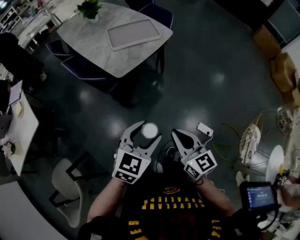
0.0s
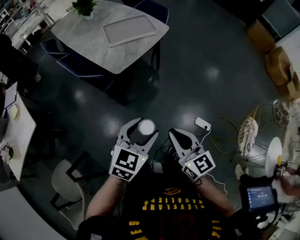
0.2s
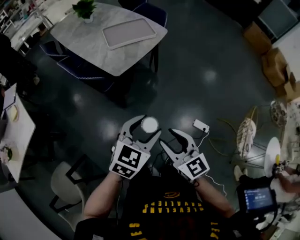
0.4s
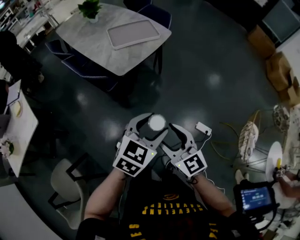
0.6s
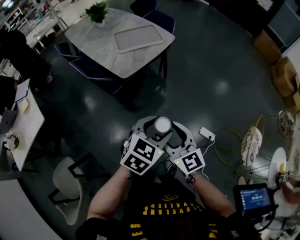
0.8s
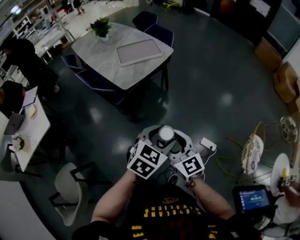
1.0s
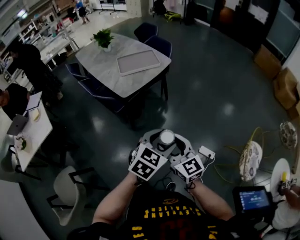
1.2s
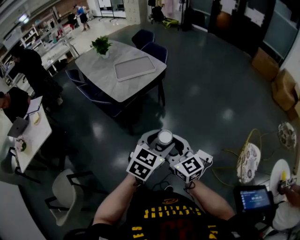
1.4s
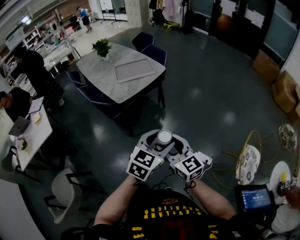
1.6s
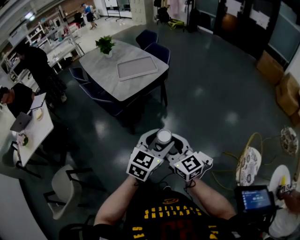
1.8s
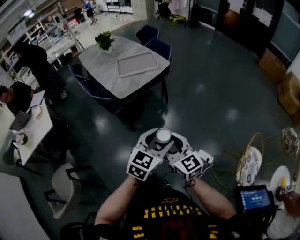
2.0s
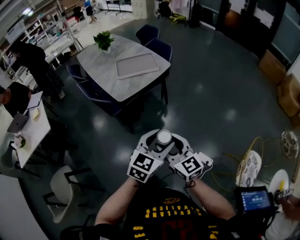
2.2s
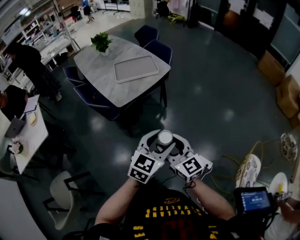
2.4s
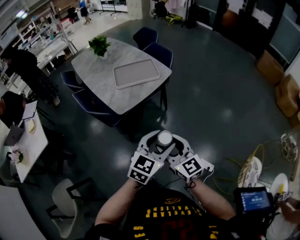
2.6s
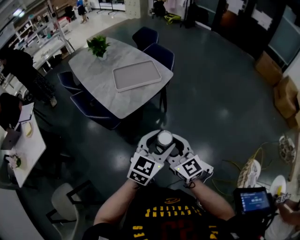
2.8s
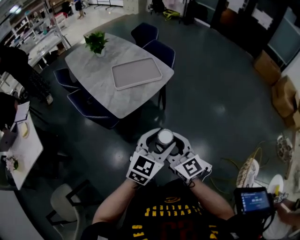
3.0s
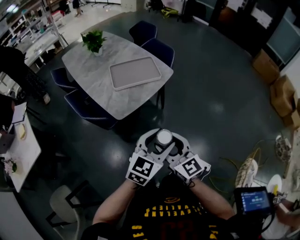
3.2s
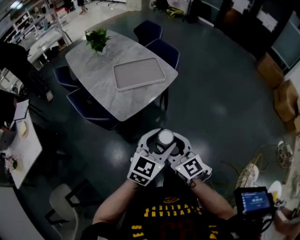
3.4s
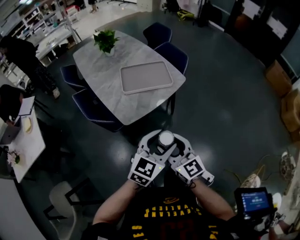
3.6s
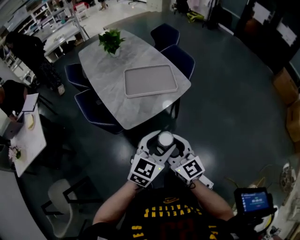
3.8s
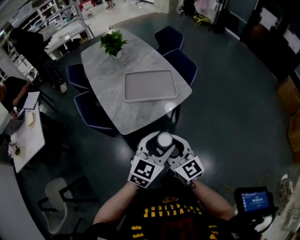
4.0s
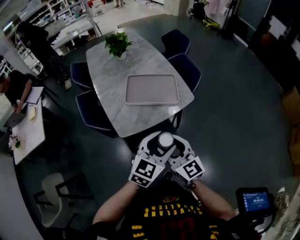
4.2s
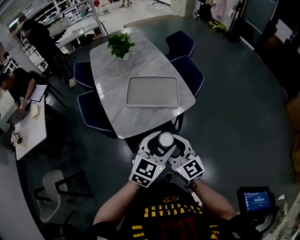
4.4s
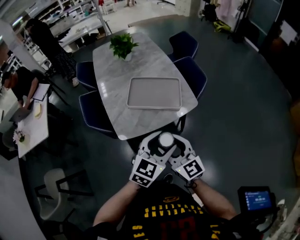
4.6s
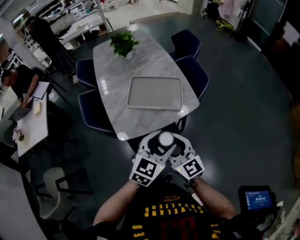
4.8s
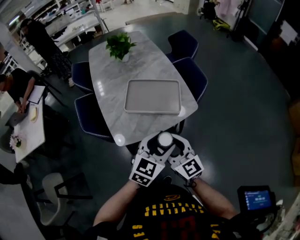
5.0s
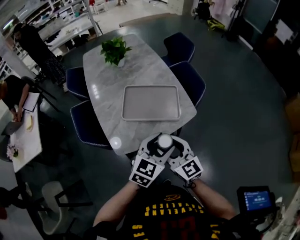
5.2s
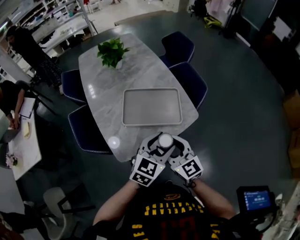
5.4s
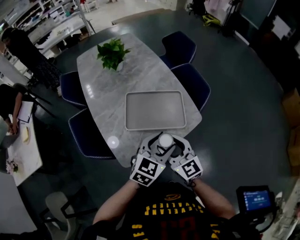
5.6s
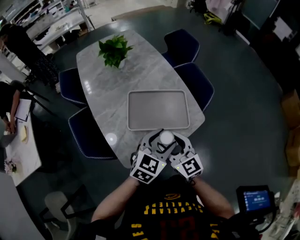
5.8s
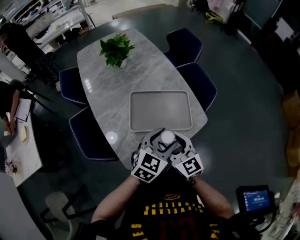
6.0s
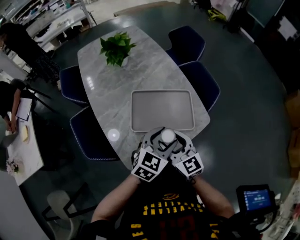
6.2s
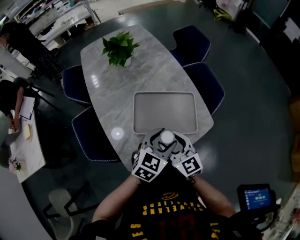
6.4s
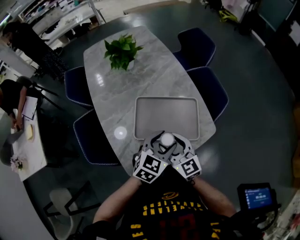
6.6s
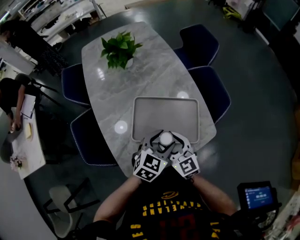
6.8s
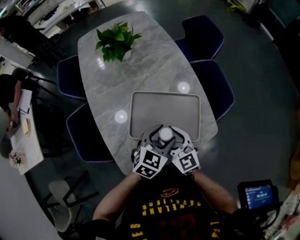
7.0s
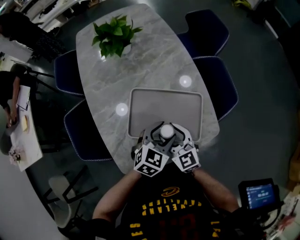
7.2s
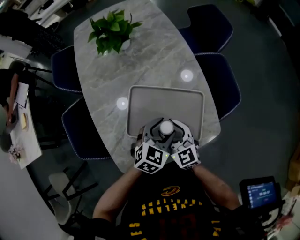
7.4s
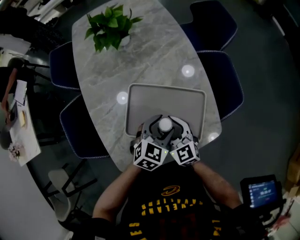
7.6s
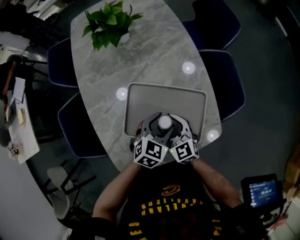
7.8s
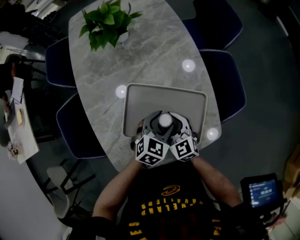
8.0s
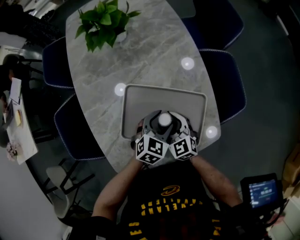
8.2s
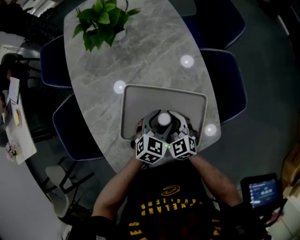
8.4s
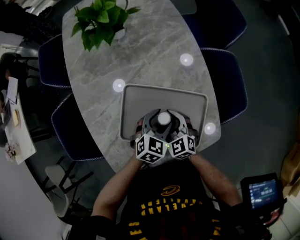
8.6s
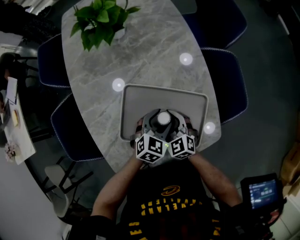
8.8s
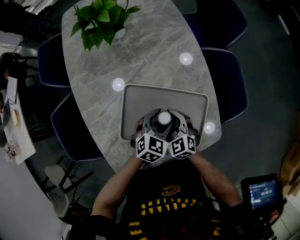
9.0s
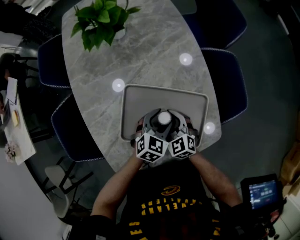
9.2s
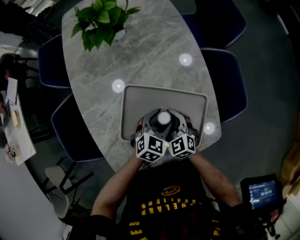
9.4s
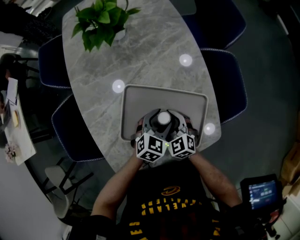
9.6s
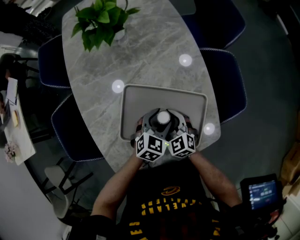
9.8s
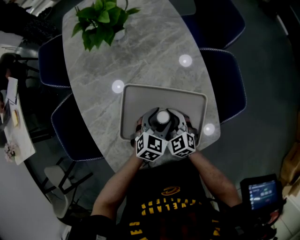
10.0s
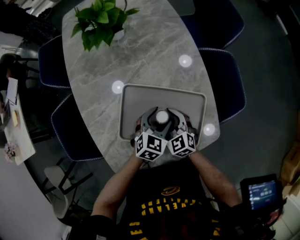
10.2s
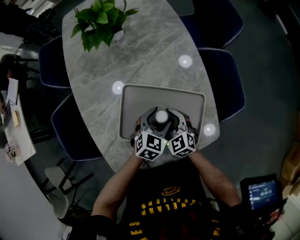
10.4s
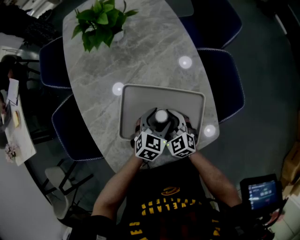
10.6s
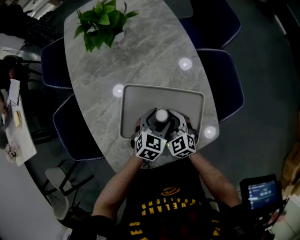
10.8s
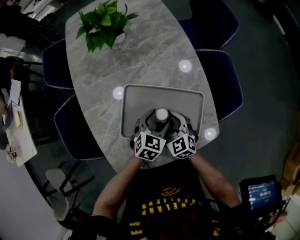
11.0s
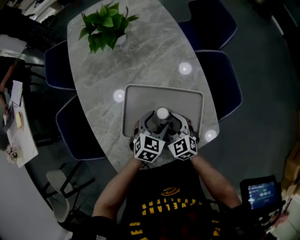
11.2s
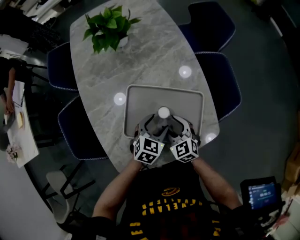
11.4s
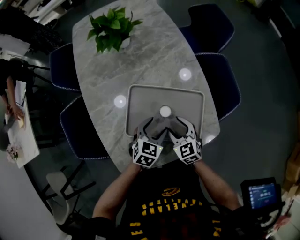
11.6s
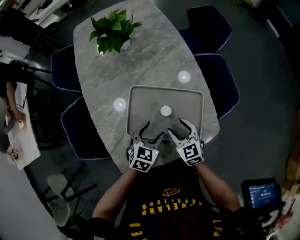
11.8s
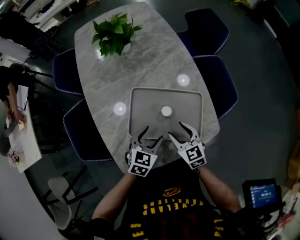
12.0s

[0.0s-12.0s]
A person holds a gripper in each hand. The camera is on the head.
0.0s to 1.6s: The left gripper travels to the right and upward by approximately 20 cm; the right gripper heads to the right and upward, covering approximately 10 cm, and opens.
1.6s to 3.0s: Both grippers travel together forward, about 20 cm.
3.0s to 4.4s: The grippers both shift forward by some 25 cm. The right gripper turns by roughly 20 degrees; the left gripper changes its angle by about 20 degrees.
4.4s to 6.0s: Both grippers move forward, approximately 20 cm.
6.0s to 7.6s: The two grippers go roughly 20 cm forward and downward.
7.6s to 9.0s: The grippers both shift downward by approximately 5 cm.
9.0s to 10.4s: Both grippers stay put.
10.4s to 12.0s: The left gripper travels backward, to the left and upward by roughly 15 cm; the right gripper moves backward and upward, roughly 10 cm.

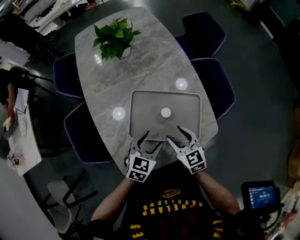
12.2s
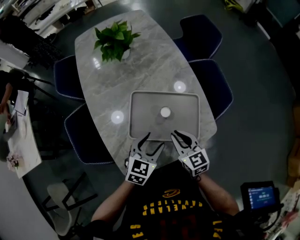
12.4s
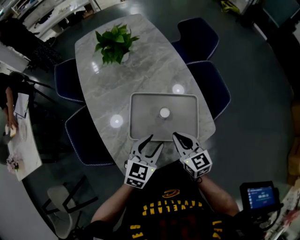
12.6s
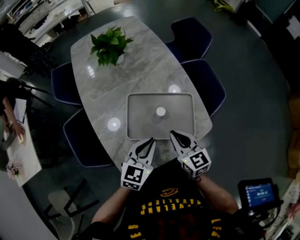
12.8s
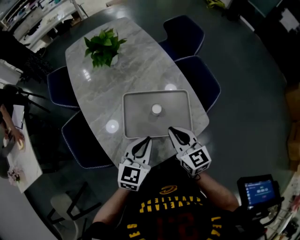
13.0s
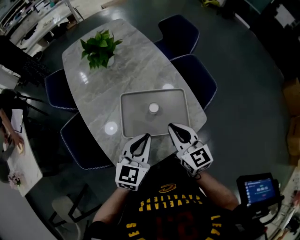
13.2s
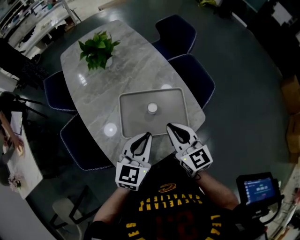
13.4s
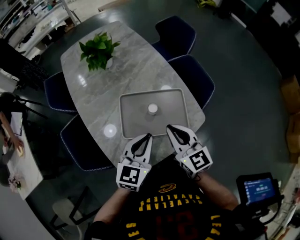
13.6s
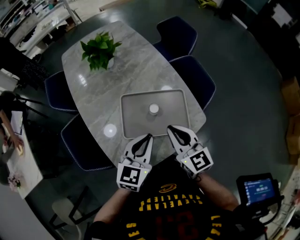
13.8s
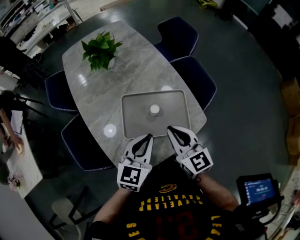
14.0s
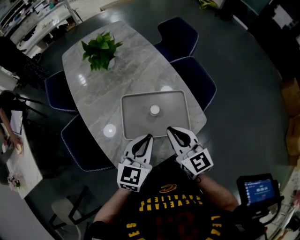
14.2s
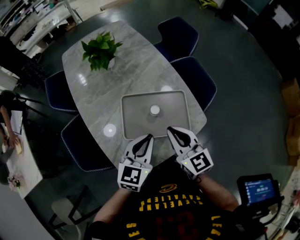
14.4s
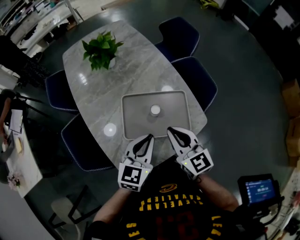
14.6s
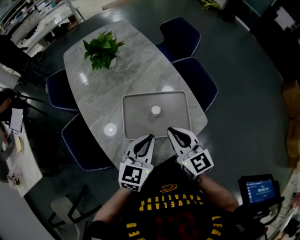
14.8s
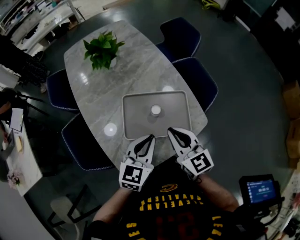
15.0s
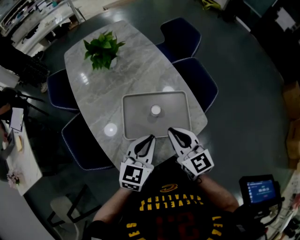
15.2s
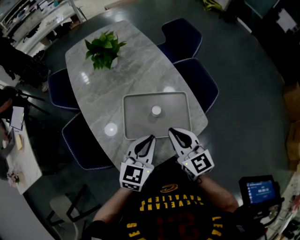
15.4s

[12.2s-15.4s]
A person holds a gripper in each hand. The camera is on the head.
12.2s to 13.8s: The grippers both shift upward by roughly 15 cm. The right gripper turns by about 20 degrees, and closes up. The left gripper closes its fingers.
13.8s to 15.4s: Both grippers stay put.

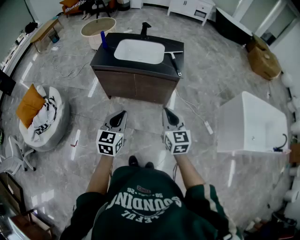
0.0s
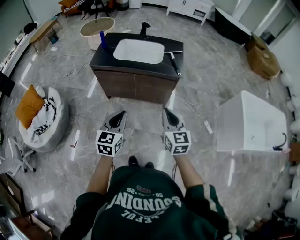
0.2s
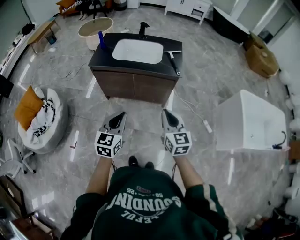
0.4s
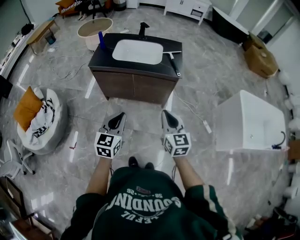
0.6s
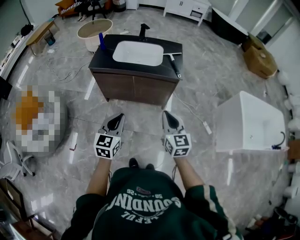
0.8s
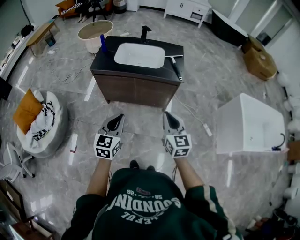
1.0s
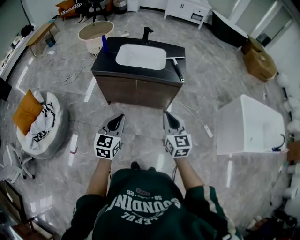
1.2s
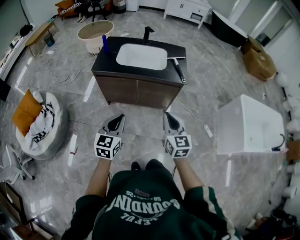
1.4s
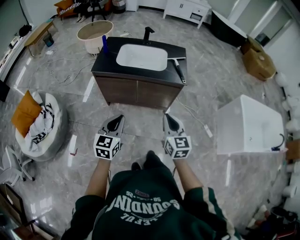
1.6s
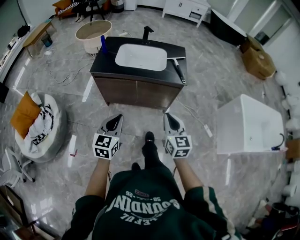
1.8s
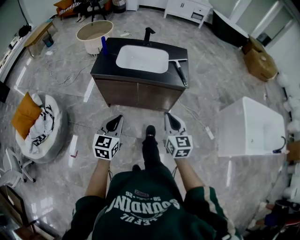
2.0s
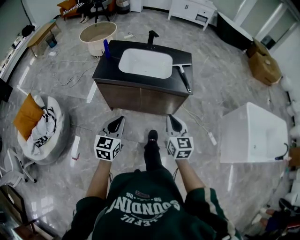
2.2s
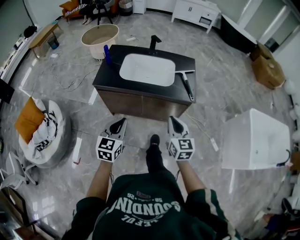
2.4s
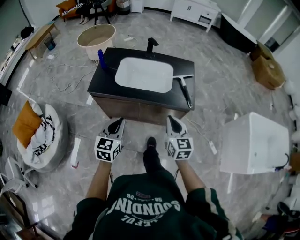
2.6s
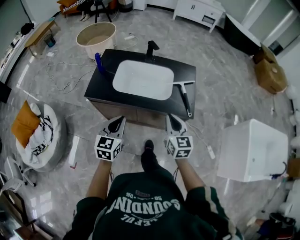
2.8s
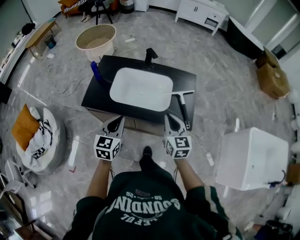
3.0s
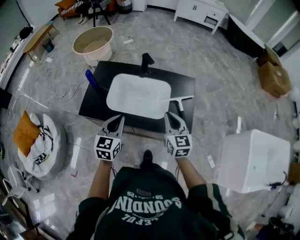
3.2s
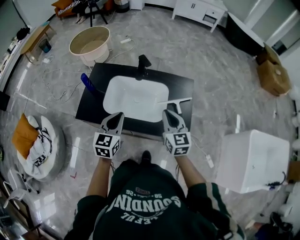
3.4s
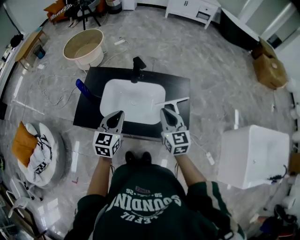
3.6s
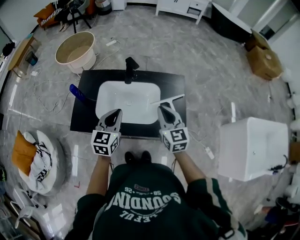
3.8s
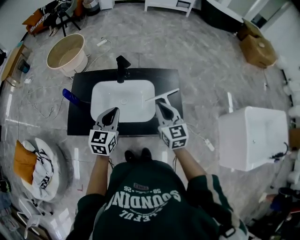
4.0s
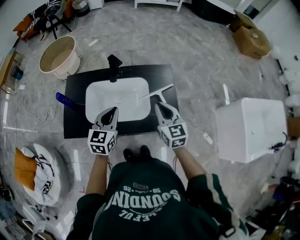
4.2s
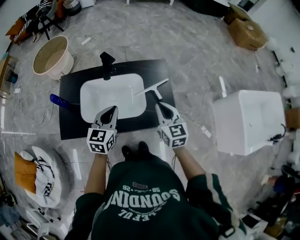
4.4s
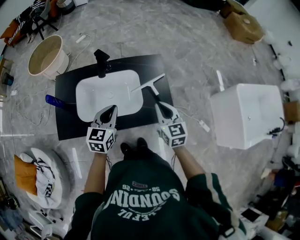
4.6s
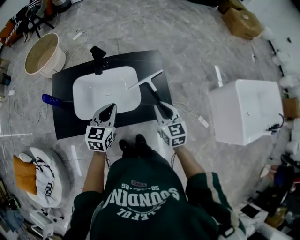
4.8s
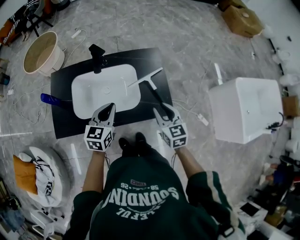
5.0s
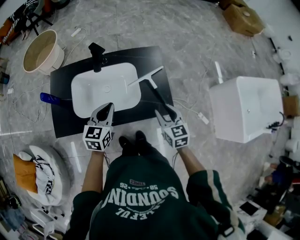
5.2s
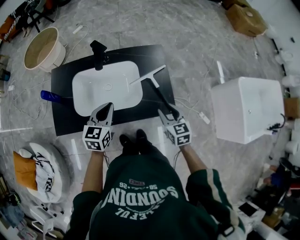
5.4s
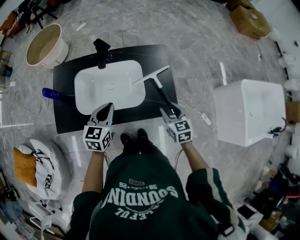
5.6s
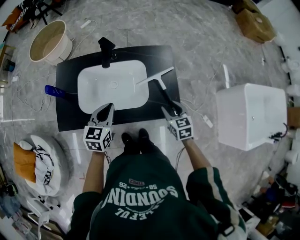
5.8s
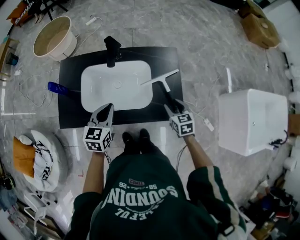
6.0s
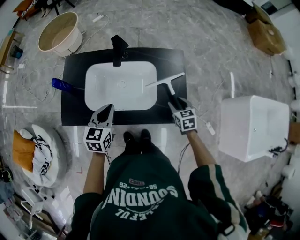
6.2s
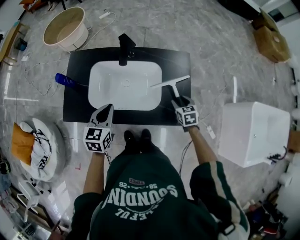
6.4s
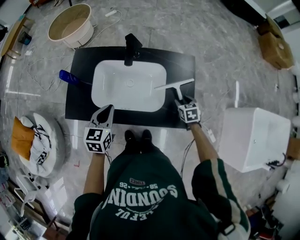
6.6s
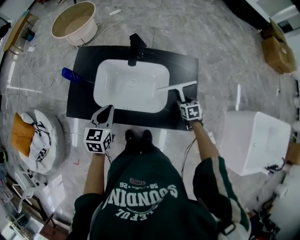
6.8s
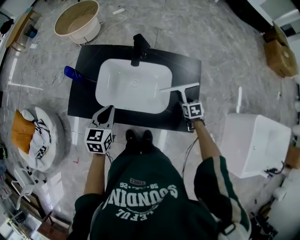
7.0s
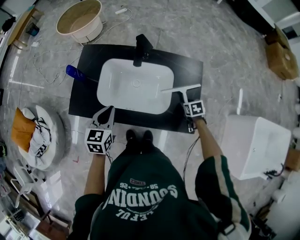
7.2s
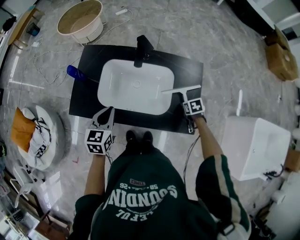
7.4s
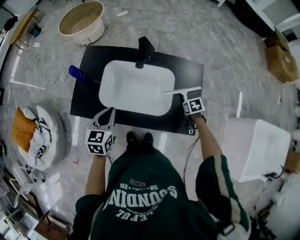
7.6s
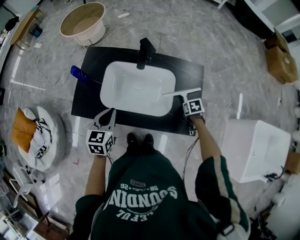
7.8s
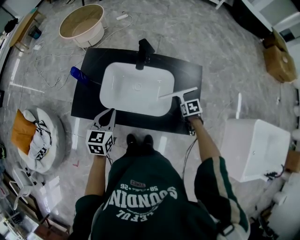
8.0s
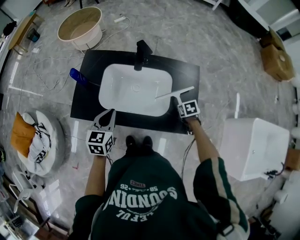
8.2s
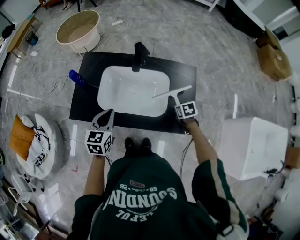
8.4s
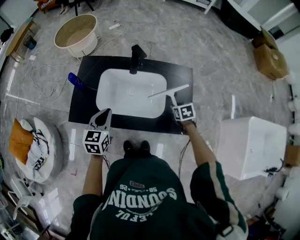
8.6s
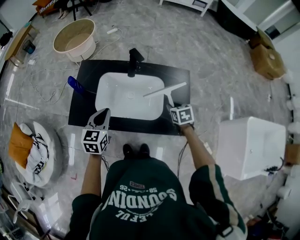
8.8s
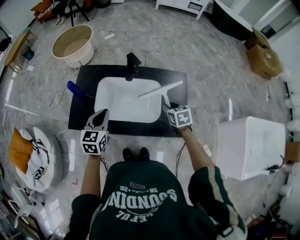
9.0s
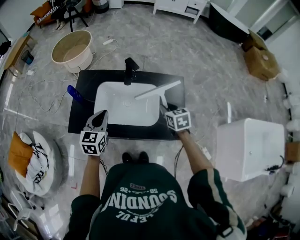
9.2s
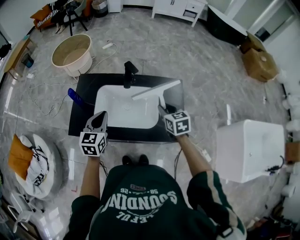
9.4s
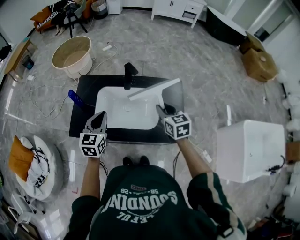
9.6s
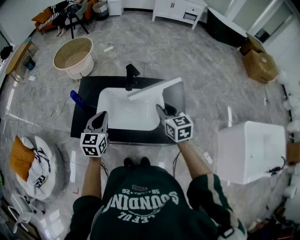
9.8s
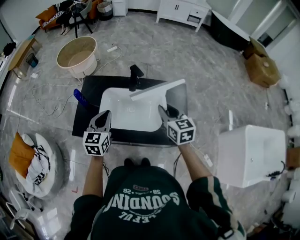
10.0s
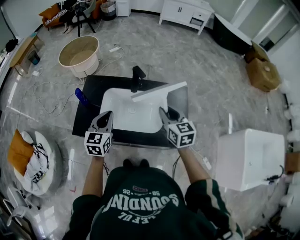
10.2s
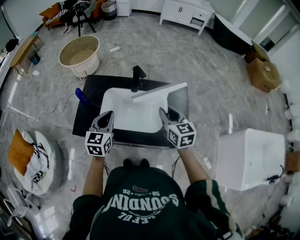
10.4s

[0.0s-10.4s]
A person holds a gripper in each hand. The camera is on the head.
0.0s to 1.4s: Both grippers move to the left, roughly 5 cm.
1.4s to 3.0s: Both grippers travel together forward, roughly 35 cm.
3.0s to 4.4s: The left gripper heads forward and to the right, covering about 20 cm. Meanwhile the right gripper is displaced forward and to the right by some 10 cm.
4.4s to 6.0s: The right gripper goes roughly 15 cm downward, swivels some 20 degrees, and opens up; the left gripper travels downward by about 5 cm.
6.0s to 7.4s: The right gripper is displaced downward by some 10 cm, and tips its fingers downward by about 30 degrees; the left gripper ends up approximately 10 cm from where it was.
7.4s to 9.0s: The right gripper heads upward, covering about 15 cm, and swivels some 20 degrees.
9.0s to 10.4s: The right gripper travels upward and to the left by about 15 cm, and swivels roughly 30 degrees.
